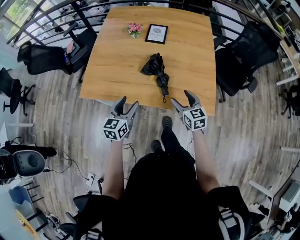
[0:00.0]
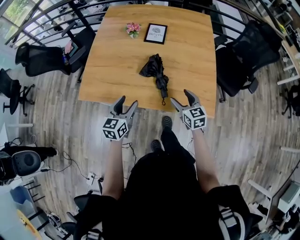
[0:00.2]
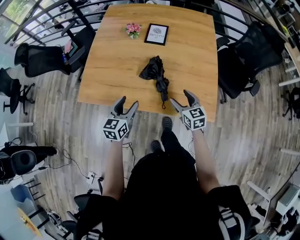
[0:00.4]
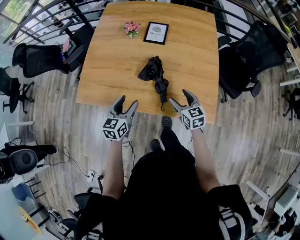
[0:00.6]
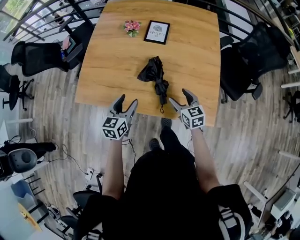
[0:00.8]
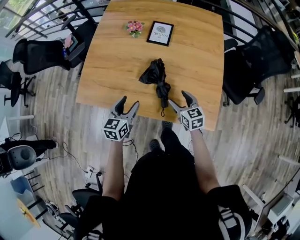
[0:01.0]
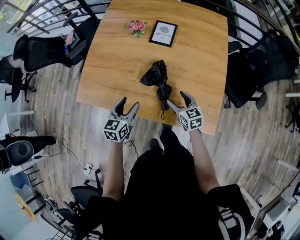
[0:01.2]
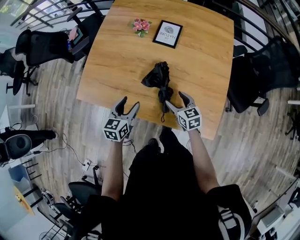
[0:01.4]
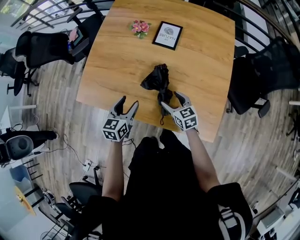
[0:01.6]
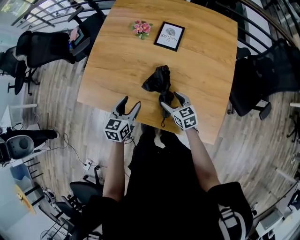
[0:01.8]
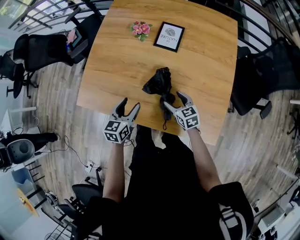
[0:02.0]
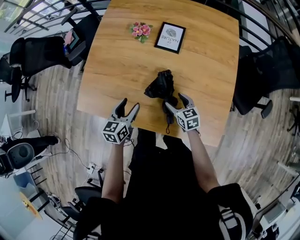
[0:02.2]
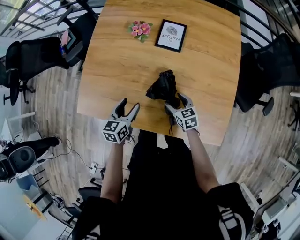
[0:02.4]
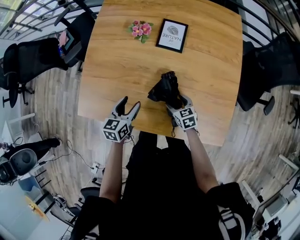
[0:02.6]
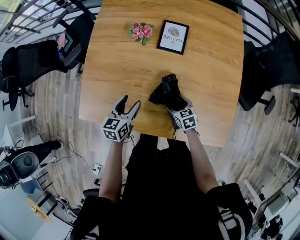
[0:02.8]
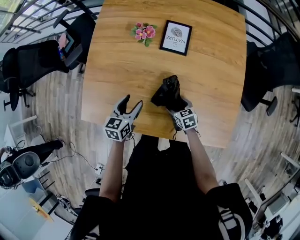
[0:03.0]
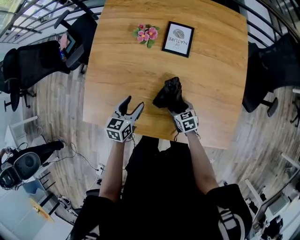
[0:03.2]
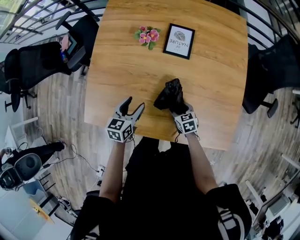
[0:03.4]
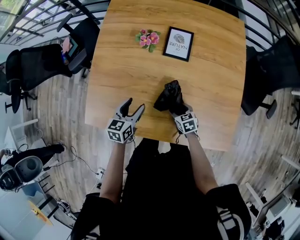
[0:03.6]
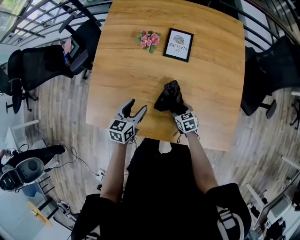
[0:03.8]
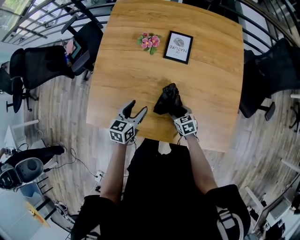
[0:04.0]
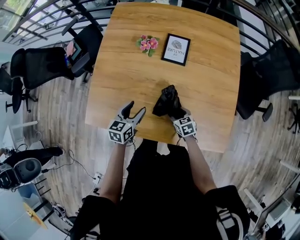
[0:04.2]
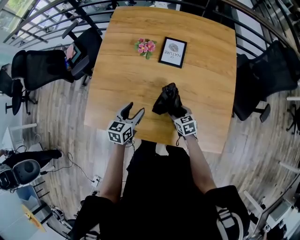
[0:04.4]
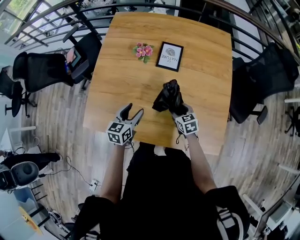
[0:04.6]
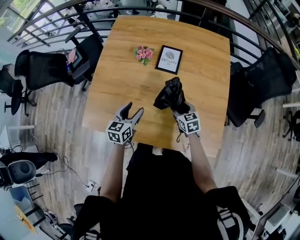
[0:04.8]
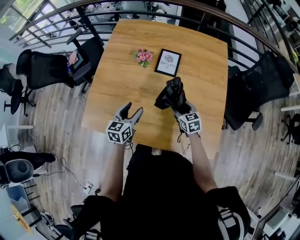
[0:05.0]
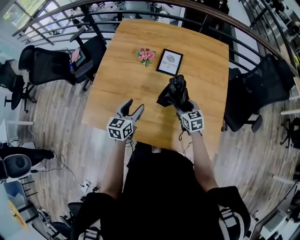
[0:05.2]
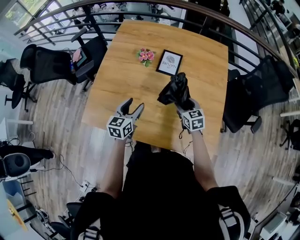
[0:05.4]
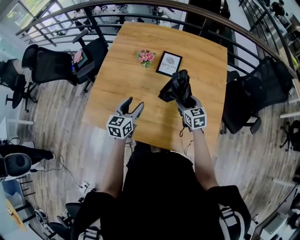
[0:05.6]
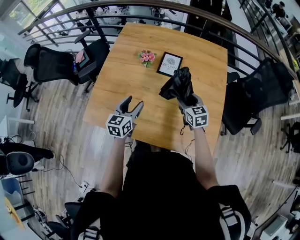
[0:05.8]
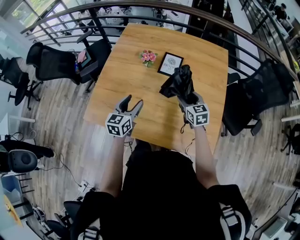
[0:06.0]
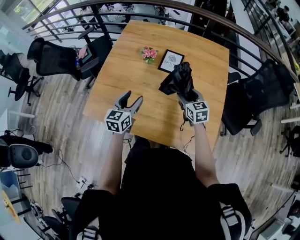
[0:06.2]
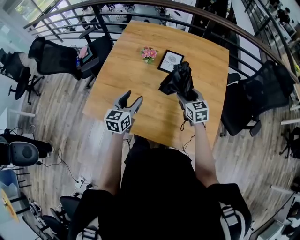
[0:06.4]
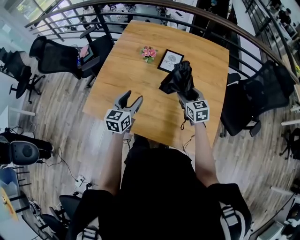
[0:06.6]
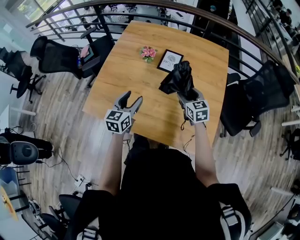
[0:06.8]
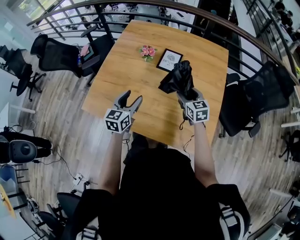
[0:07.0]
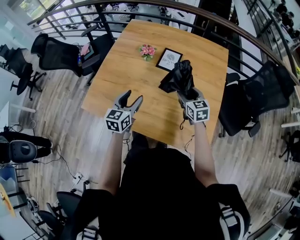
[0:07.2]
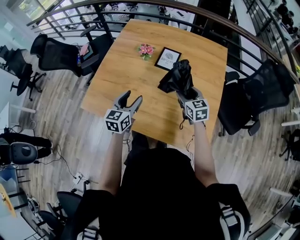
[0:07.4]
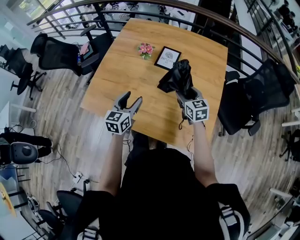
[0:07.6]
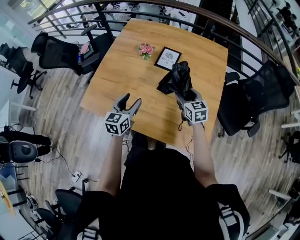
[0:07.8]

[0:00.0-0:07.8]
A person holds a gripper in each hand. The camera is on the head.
0:00.0 to 0:01.6: The right gripper shifts about 15 cm forward and downward. Meanwhile the left gripper travels forward by roughly 15 cm.
0:01.6 to 0:03.2: The right gripper goes approximately 15 cm downward and forward, and turns by about 20 degrees. Meanwhile the left gripper heads forward and downward, covering some 15 cm.
0:03.2 to 0:04.6: The left gripper travels upward by roughly 5 cm; the right gripper travels upward by some 10 cm.
0:04.6 to 0:06.2: The left gripper heads upward, covering roughly 10 cm. Meanwhile the right gripper travels upward by roughly 15 cm.
0:06.2 to 0:07.8: The left gripper moves roughly 5 cm.

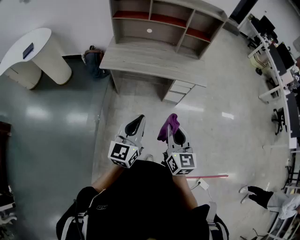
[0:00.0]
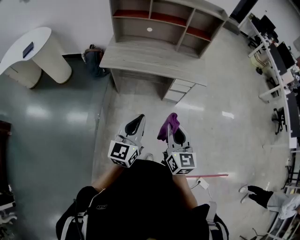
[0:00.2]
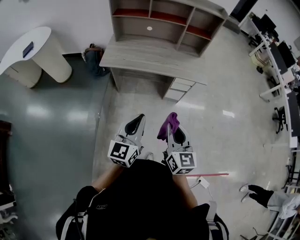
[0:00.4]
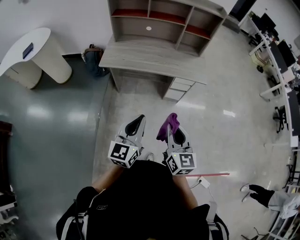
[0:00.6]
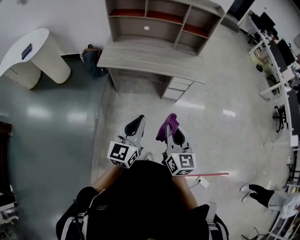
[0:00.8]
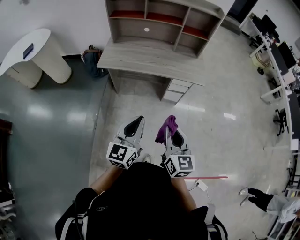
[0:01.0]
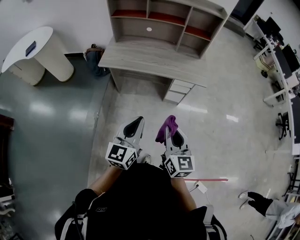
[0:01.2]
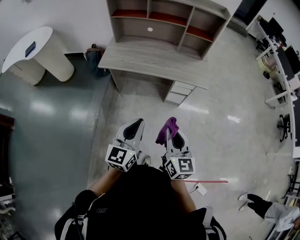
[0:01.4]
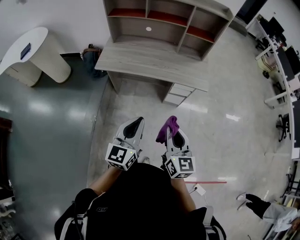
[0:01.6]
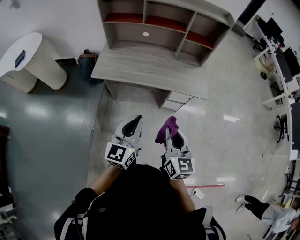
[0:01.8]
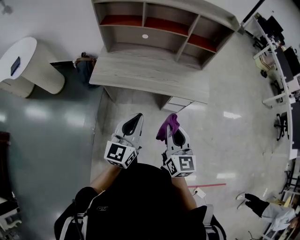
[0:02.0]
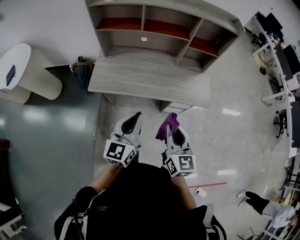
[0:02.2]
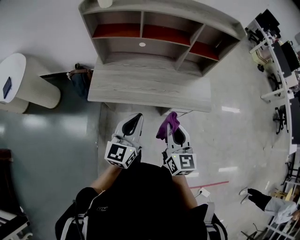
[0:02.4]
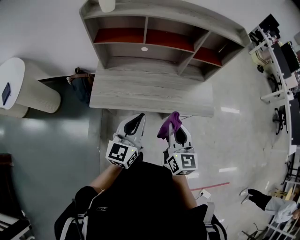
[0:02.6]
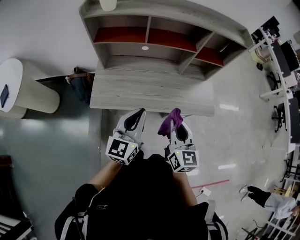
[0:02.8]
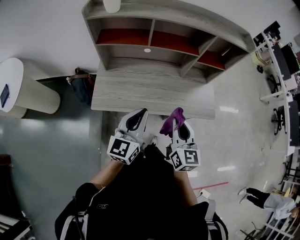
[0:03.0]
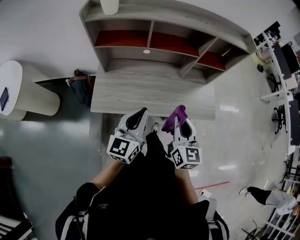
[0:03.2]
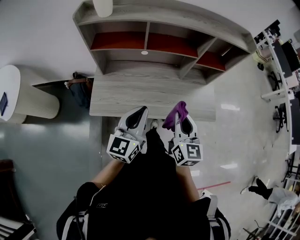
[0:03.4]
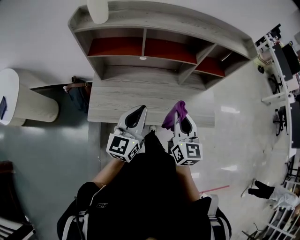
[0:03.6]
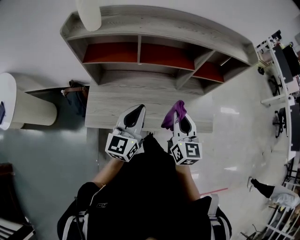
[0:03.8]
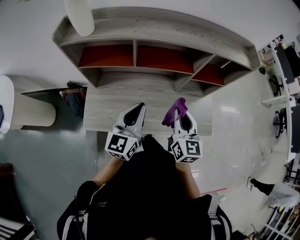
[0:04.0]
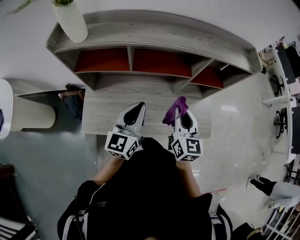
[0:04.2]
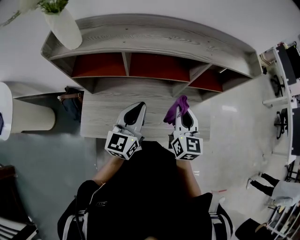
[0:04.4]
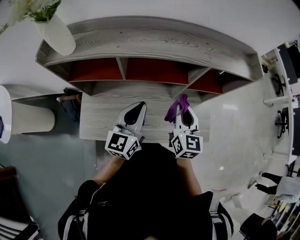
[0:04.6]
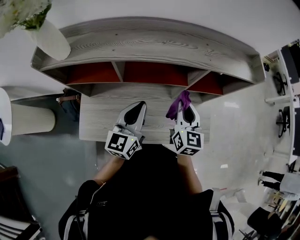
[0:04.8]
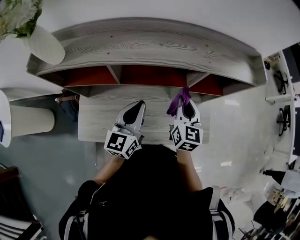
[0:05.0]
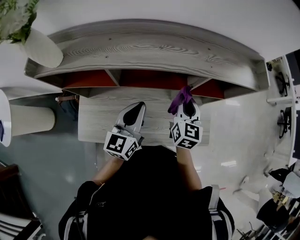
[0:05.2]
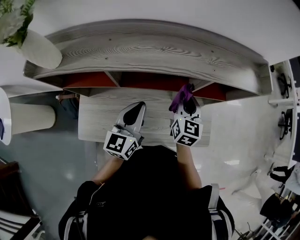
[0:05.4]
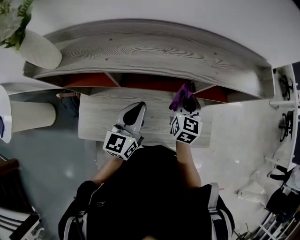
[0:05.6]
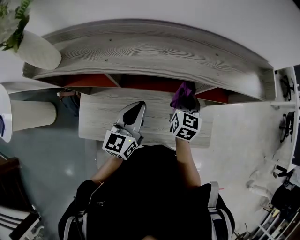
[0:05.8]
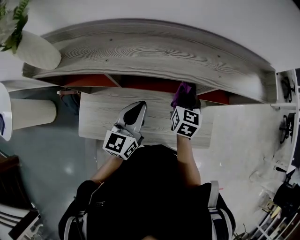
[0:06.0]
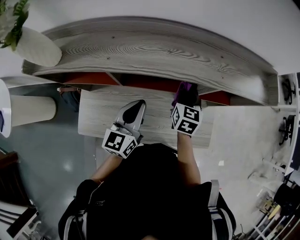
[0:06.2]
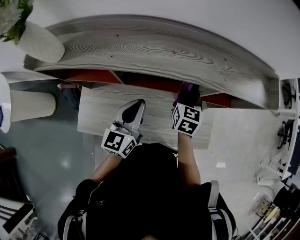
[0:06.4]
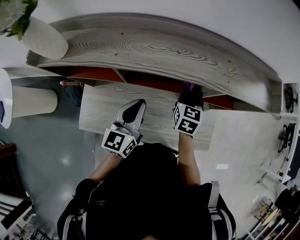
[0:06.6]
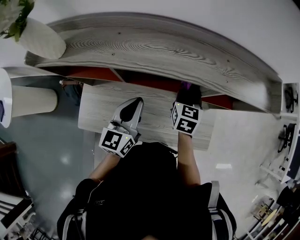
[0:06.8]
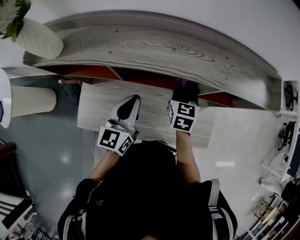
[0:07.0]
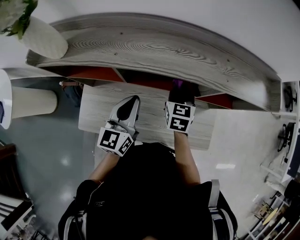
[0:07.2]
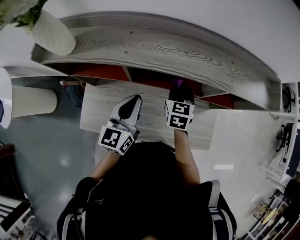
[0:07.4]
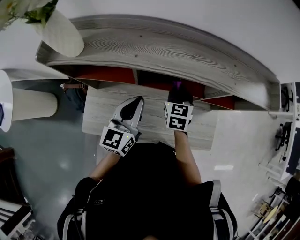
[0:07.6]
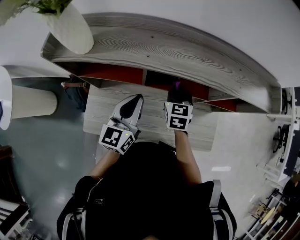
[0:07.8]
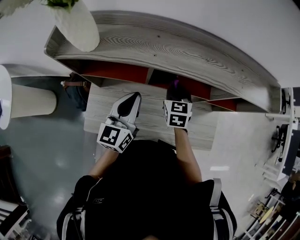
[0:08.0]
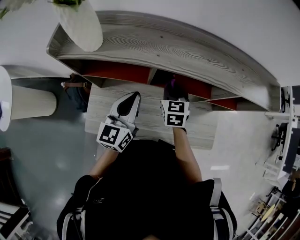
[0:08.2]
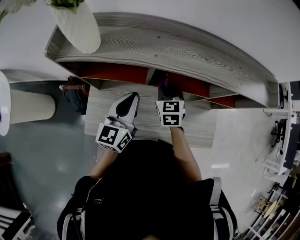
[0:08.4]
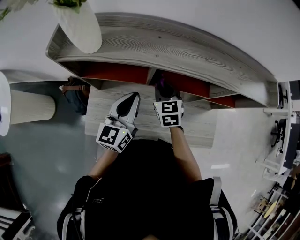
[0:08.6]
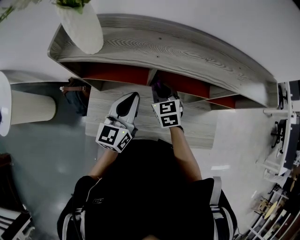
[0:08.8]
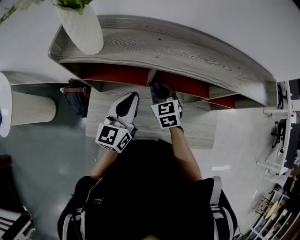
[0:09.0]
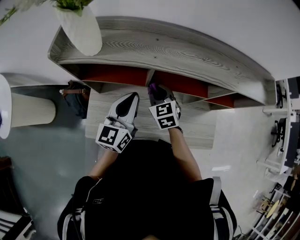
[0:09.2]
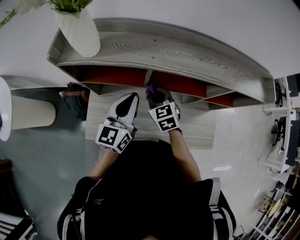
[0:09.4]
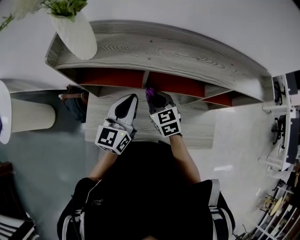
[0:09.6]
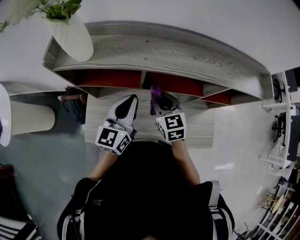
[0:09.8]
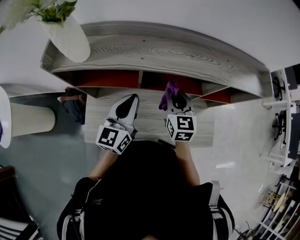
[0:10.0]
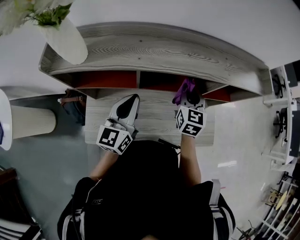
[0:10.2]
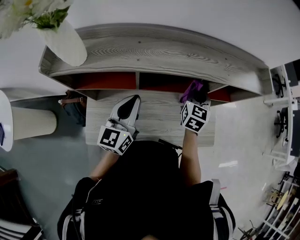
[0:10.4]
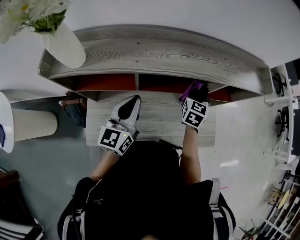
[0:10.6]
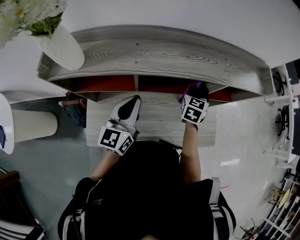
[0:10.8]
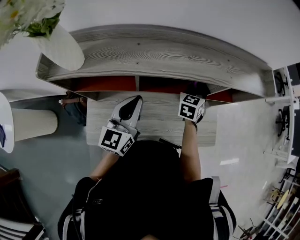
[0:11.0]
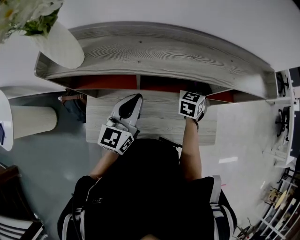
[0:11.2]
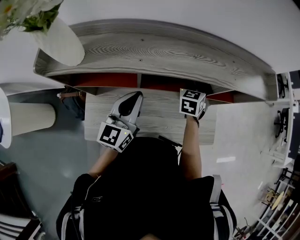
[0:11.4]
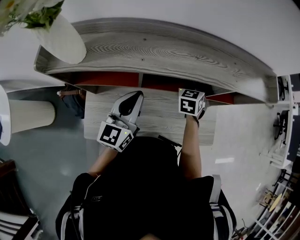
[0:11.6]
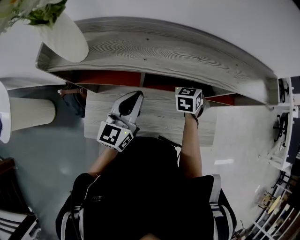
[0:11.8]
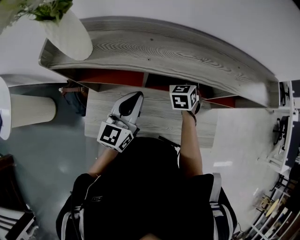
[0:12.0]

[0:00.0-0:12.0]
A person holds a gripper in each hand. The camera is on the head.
0:00.0 to 0:01.6: The two grippers go about 10 cm forward and to the right.
0:01.6 to 0:03.0: Both grippers travel together forward and to the left, some 35 cm.
0:03.0 to 0:04.4: The two grippers go approximately 25 cm forward.
0:04.4 to 0:06.0: The right gripper shifts about 20 cm forward and downward; the left gripper moves forward, some 10 cm.
0:06.0 to 0:07.6: Both grippers move to the left, about 10 cm.
0:07.6 to 0:09.0: The left gripper goes roughly 5 cm to the left; the right gripper heads to the left, covering about 15 cm, and changes its angle by some 20 degrees.
0:09.0 to 0:10.4: The right gripper moves to the right, some 20 cm, and changes its angle by approximately 40 degrees.
0:10.4 to 0:12.0: The right gripper moves to the left and downward, about 10 cm, and turns by roughly 30 degrees.

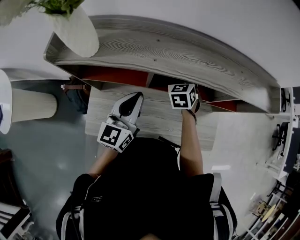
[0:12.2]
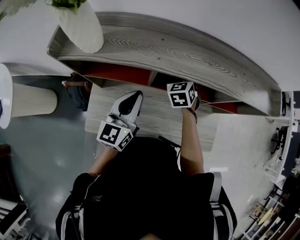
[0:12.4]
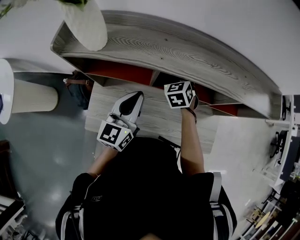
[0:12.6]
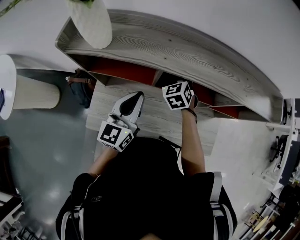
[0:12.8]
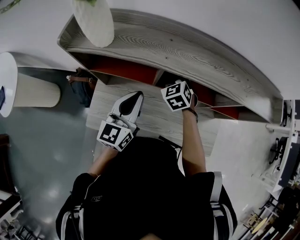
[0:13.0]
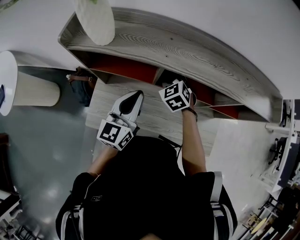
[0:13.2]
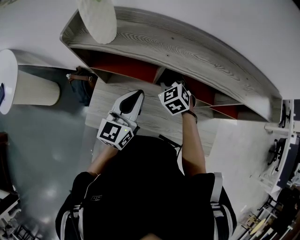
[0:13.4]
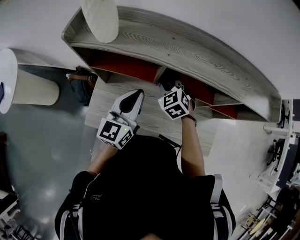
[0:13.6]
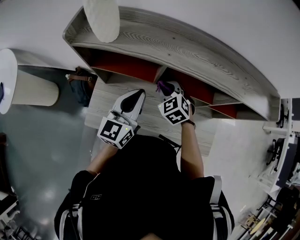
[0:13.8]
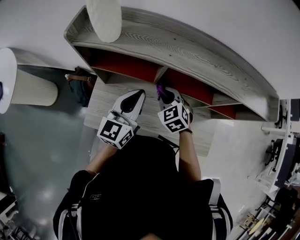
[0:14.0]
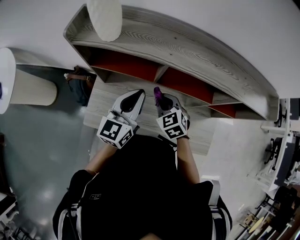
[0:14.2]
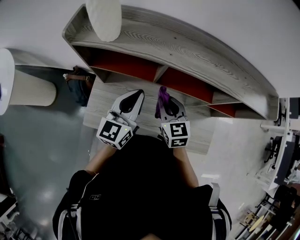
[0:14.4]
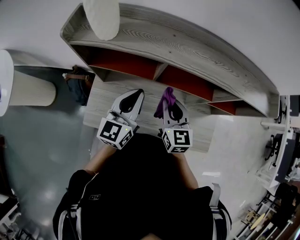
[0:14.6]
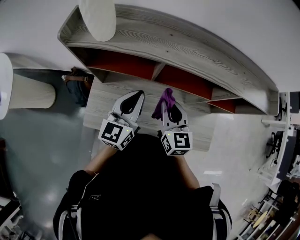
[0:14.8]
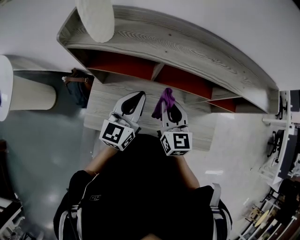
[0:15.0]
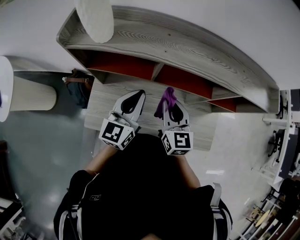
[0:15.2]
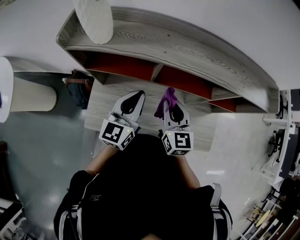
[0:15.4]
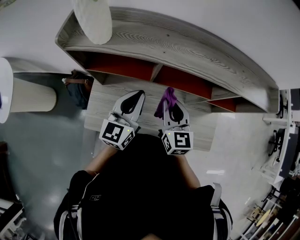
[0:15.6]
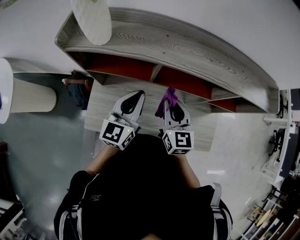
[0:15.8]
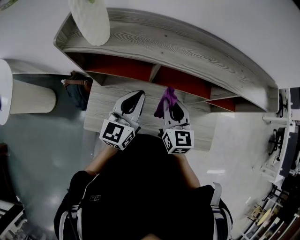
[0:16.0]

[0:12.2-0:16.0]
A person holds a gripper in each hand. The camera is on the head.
0:12.2 to 0:13.4: The right gripper moves to the left and backward, approximately 10 cm, and turns by about 30 degrees.
0:13.4 to 0:14.8: The right gripper travels backward and upward by some 15 cm, and turns by roughly 50 degrees.
0:14.8 to 0:16.0: The grippers make only small movements.
